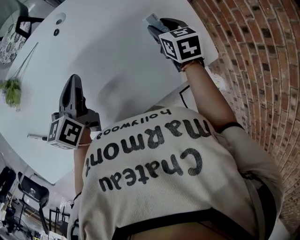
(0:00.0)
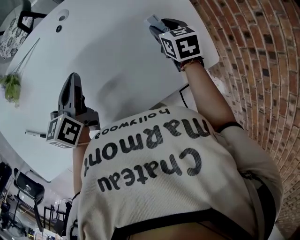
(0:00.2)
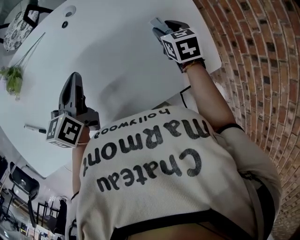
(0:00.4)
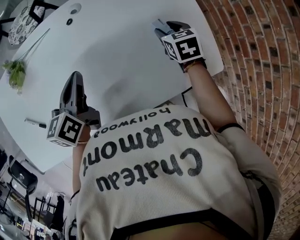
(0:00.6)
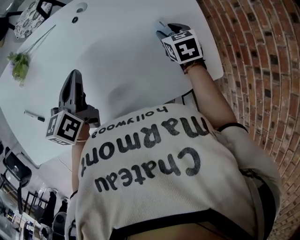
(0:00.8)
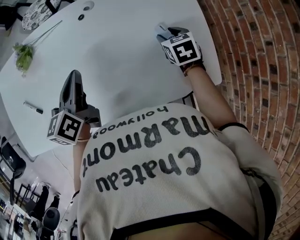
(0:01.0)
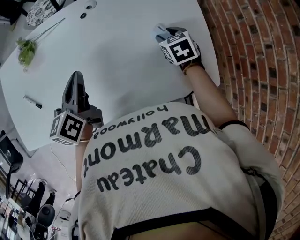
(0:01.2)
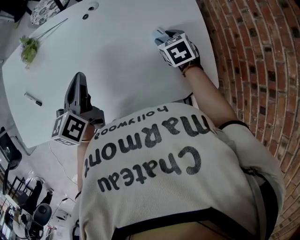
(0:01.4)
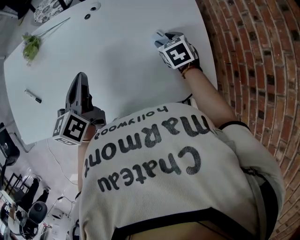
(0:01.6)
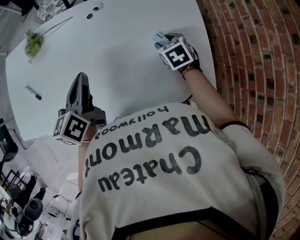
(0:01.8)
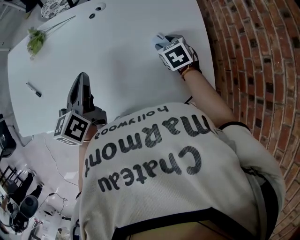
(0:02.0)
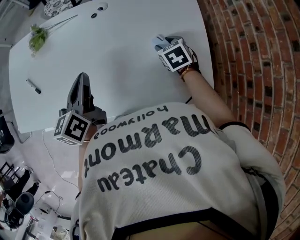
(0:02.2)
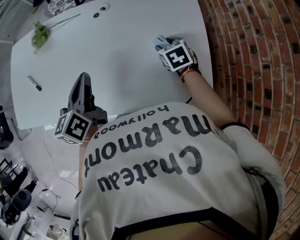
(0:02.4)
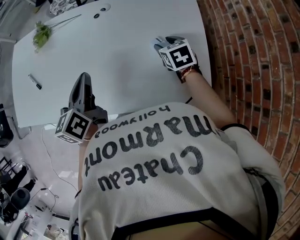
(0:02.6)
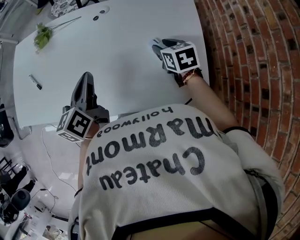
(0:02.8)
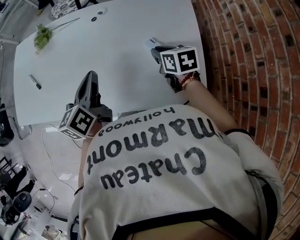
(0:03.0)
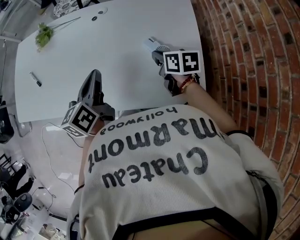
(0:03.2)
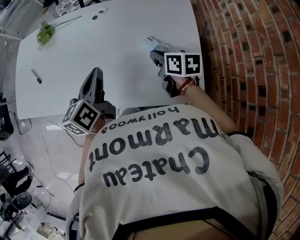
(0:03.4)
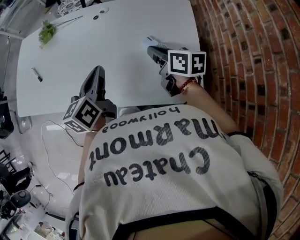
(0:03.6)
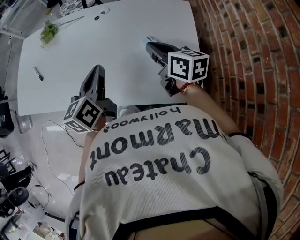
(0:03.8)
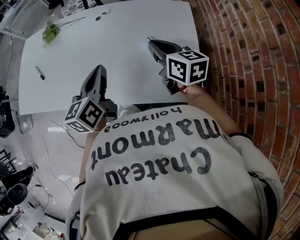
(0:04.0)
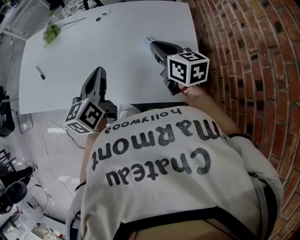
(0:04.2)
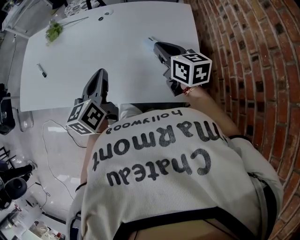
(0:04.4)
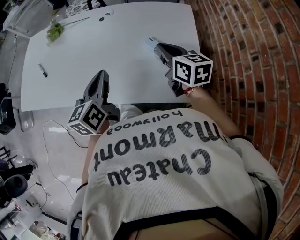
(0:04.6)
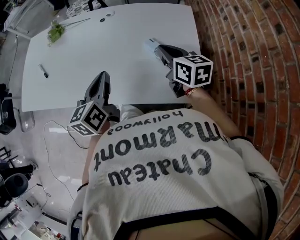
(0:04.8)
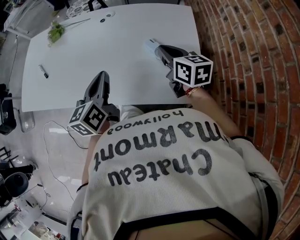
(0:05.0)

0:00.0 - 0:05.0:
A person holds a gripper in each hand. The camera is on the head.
0:00.0 - 0:01.6: The right gripper rotates roughly 30 degrees. Meanwhile the left gripper is displaced backward and upward by about 10 cm, and swivels approximately 20 degrees.
0:01.6 - 0:03.4: The right gripper is displaced upward and backward by some 10 cm, changes its angle by approximately 40 degrees, and closes its fingers; the left gripper moves to the right and backward, approximately 10 cm.
0:03.4 - 0:05.0: The right gripper is displaced upward by approximately 5 cm.

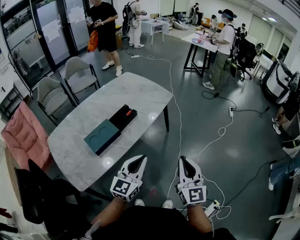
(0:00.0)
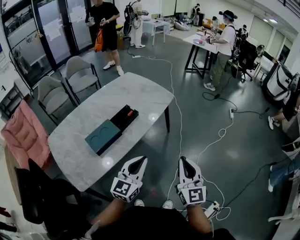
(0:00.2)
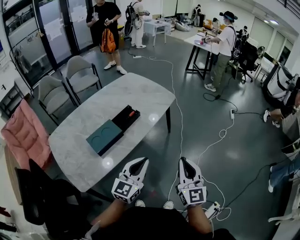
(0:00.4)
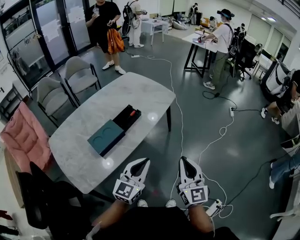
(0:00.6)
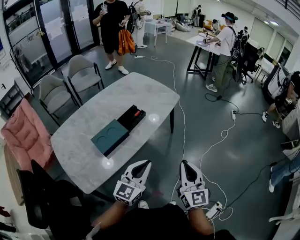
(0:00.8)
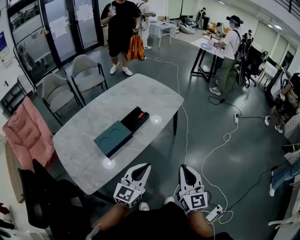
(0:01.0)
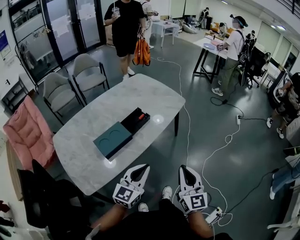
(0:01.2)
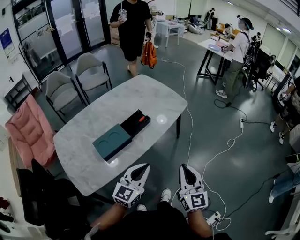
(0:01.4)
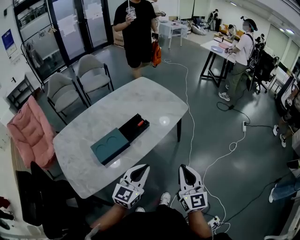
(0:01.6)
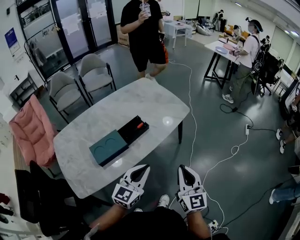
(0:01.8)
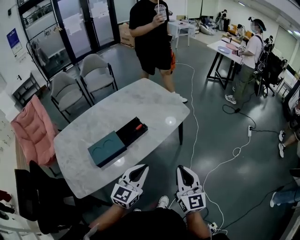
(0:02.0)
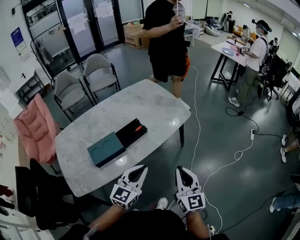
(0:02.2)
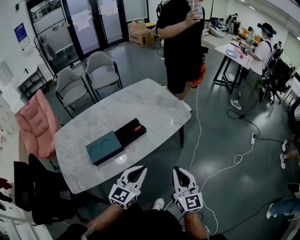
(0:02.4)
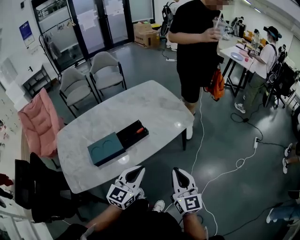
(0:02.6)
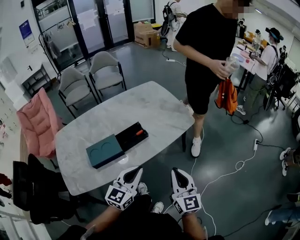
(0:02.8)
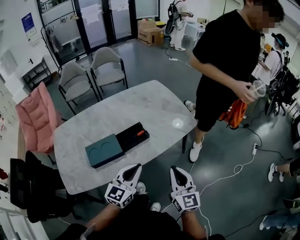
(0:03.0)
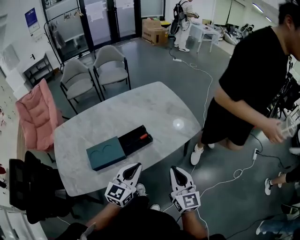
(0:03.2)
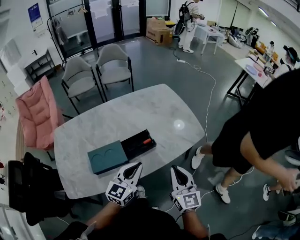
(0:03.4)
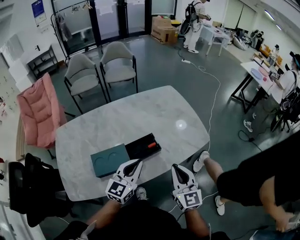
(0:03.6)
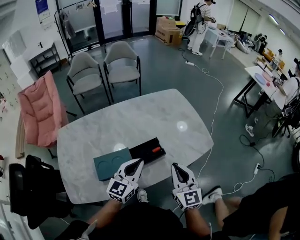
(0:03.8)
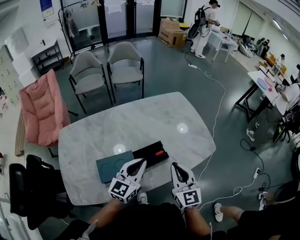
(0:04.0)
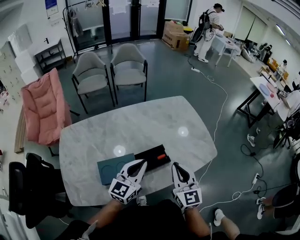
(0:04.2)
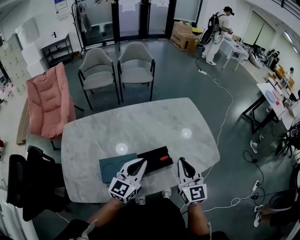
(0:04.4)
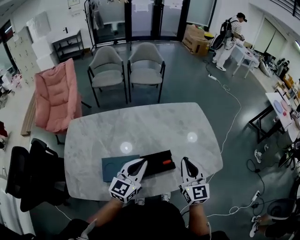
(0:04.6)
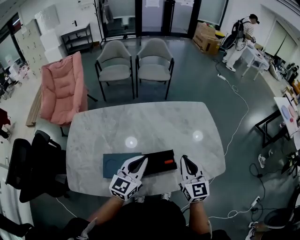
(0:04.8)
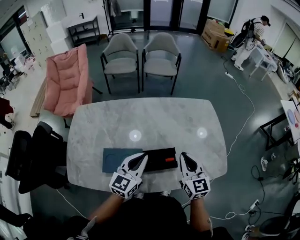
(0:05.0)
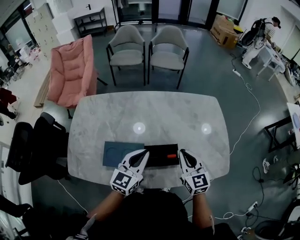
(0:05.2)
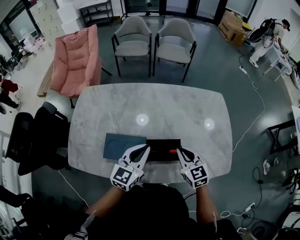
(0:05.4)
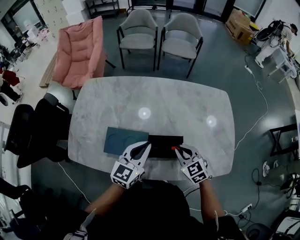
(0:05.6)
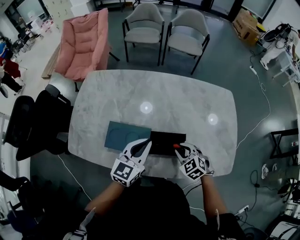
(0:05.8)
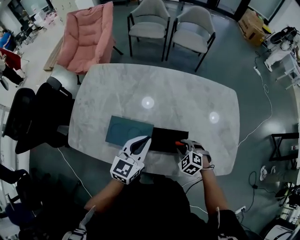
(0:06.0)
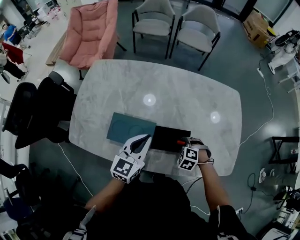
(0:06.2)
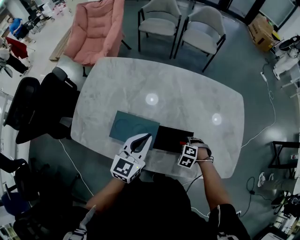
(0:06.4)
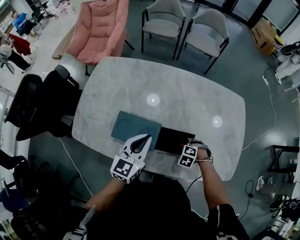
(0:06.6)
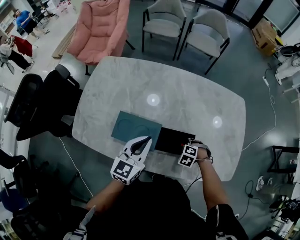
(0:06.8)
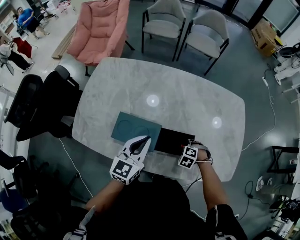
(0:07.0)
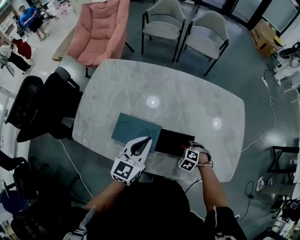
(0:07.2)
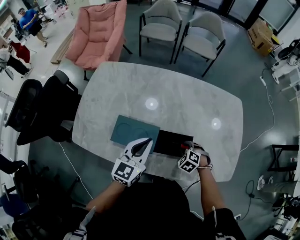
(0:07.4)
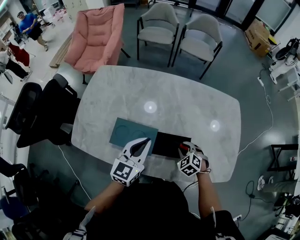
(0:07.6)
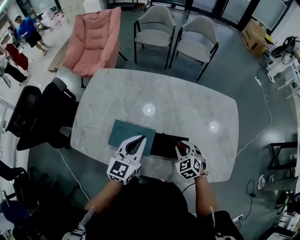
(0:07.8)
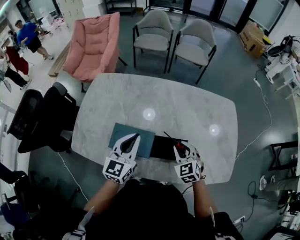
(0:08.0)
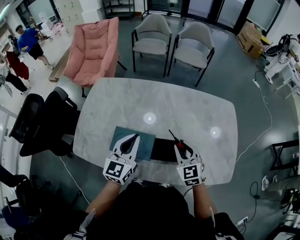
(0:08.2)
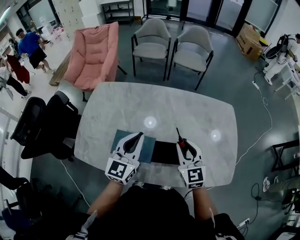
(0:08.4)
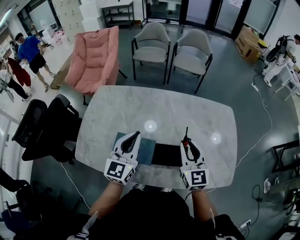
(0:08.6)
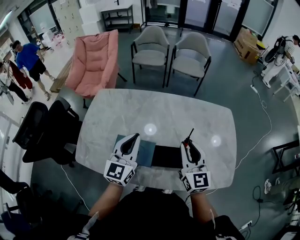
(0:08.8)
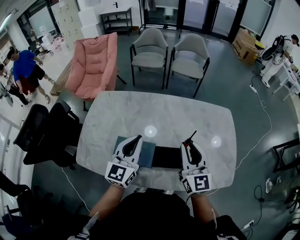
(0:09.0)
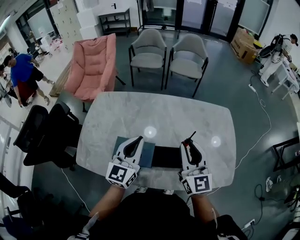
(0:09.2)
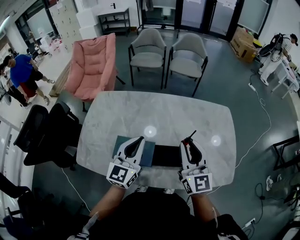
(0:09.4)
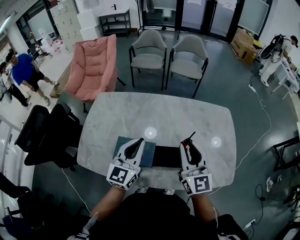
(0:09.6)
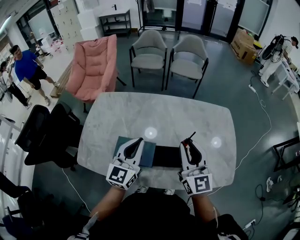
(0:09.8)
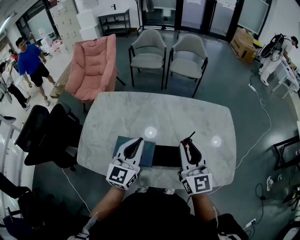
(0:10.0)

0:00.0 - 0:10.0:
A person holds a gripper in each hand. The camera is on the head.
0:00.0 - 0:01.4: The right gripper heads to the left and forward, covering some 10 cm. Meanwhile the left gripper ends up some 5 cm from where it was.
0:01.4 - 0:02.8: The right gripper goes roughly 15 cm forward, while the left gripper is displaced forward and to the right by about 15 cm.
0:02.8 - 0:04.2: The two grippers go some 25 cm forward and to the left.
0:04.2 - 0:05.8: The left gripper changes place by approximately 10 cm, and changes its angle by some 30 degrees. Meanwhile the right gripper heads downward, covering approximately 20 cm, and tips its fingers downward by roughly 50 degrees.
0:05.8 - 0:07.2: The left gripper ends up roughly 5 cm from where it was. The right gripper heads downward, covering approximately 10 cm, and swivels about 30 degrees.
0:07.2 - 0:08.6: The right gripper travels upward by roughly 30 cm, and tilts its fingers some 70 degrees upward. Meanwhile the left gripper is displaced upward by some 10 cm.
0:08.6 - 0:10.0: The right gripper goes about 10 cm upward.

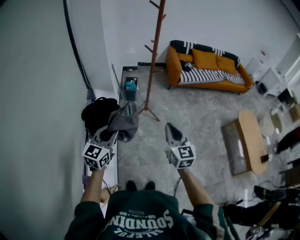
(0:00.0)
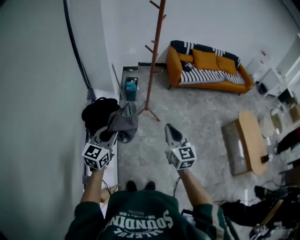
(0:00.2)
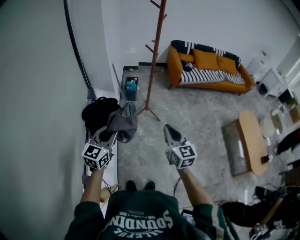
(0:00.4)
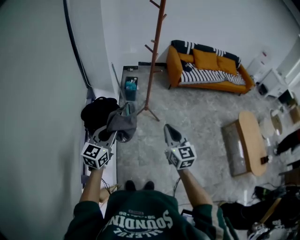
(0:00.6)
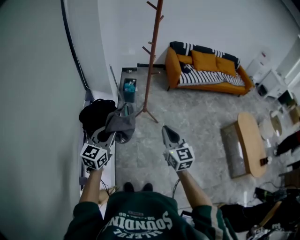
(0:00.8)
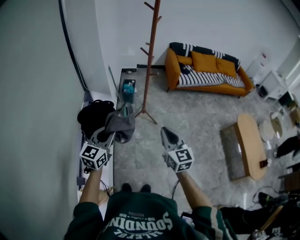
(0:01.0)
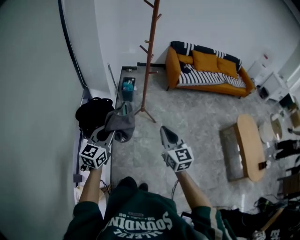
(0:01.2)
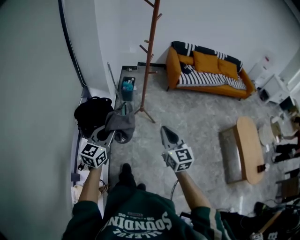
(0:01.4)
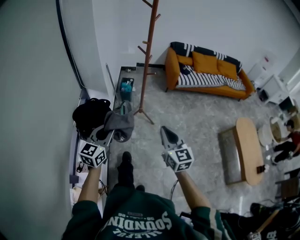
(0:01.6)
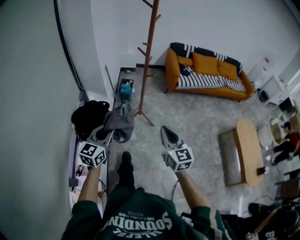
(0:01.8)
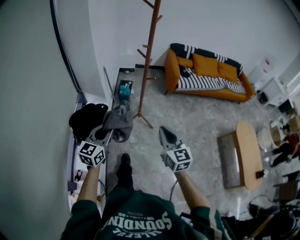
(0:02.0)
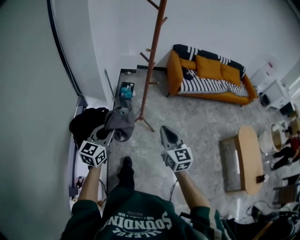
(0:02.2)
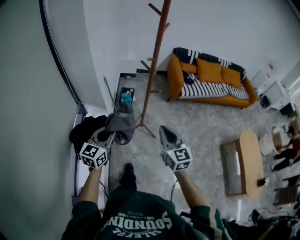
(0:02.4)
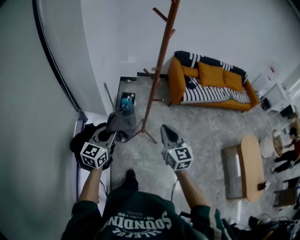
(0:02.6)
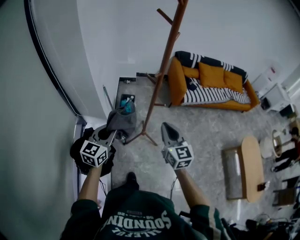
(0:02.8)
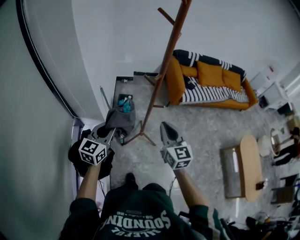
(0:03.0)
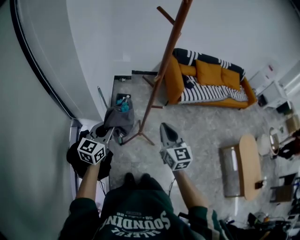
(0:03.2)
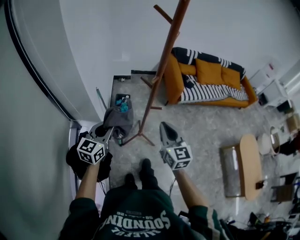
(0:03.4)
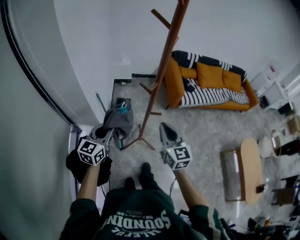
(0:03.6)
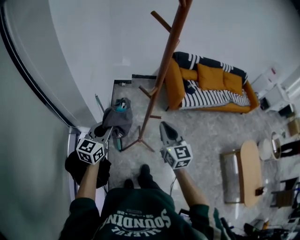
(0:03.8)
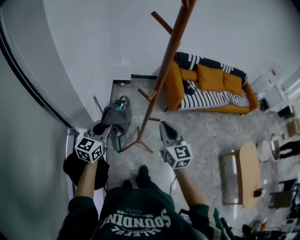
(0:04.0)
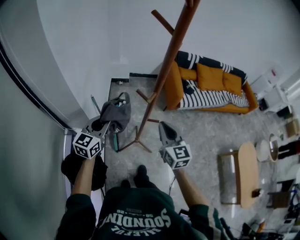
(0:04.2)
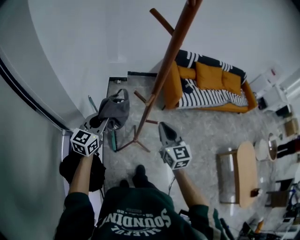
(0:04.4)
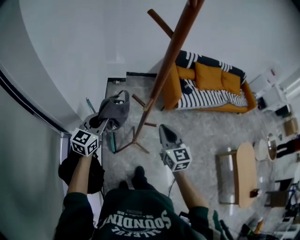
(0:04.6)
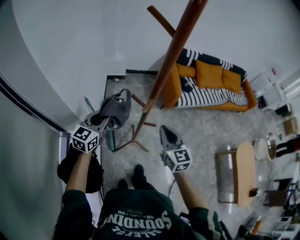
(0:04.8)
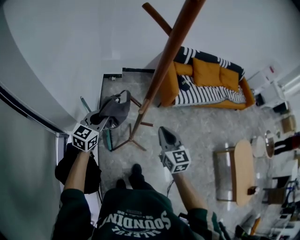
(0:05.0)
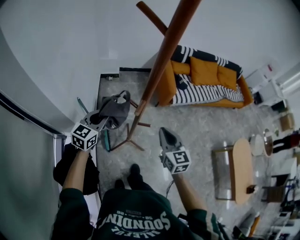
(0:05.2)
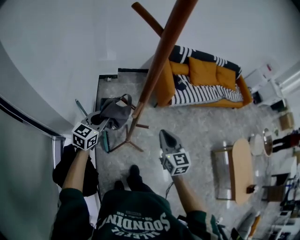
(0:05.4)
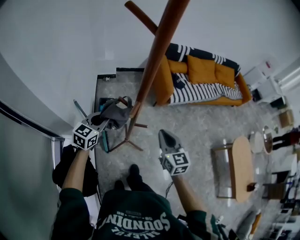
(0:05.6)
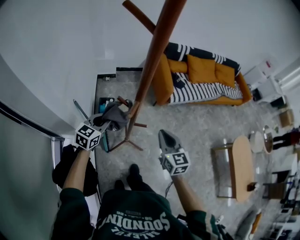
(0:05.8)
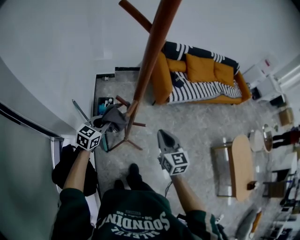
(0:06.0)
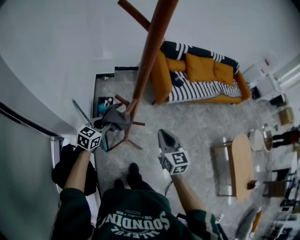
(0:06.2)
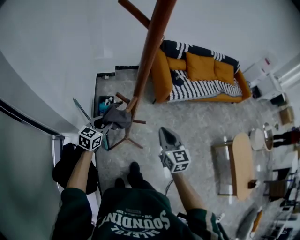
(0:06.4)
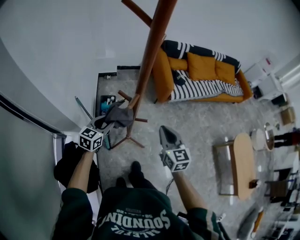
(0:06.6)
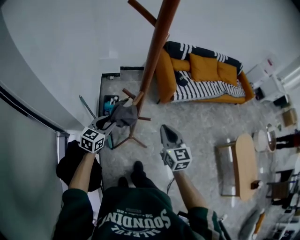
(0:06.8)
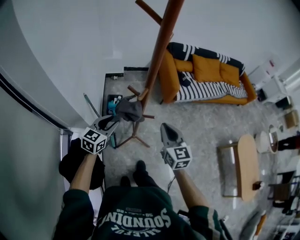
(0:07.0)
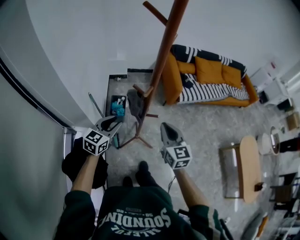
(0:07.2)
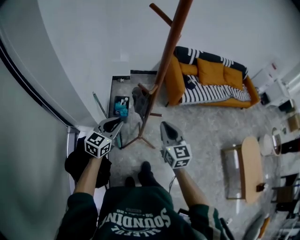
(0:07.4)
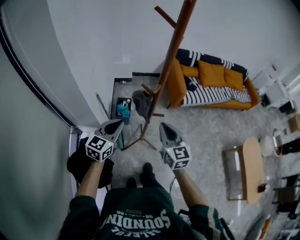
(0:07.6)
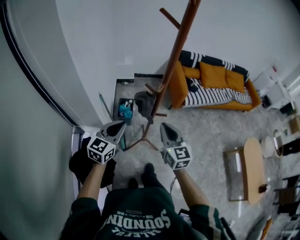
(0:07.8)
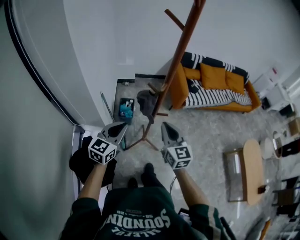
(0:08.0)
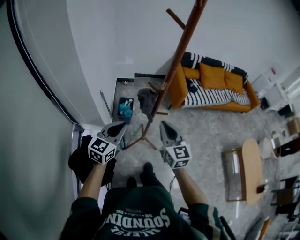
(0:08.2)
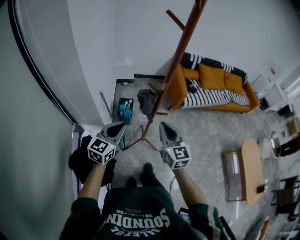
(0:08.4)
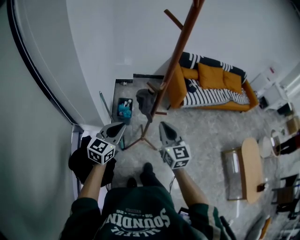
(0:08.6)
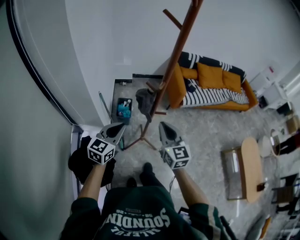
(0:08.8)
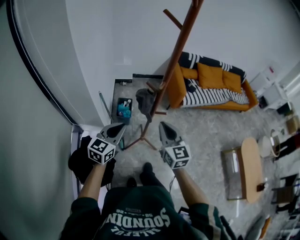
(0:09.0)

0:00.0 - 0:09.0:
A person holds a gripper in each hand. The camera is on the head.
0:00.0 - 0:01.6: The grippers both shift to the right by some 5 cm.
0:01.6 - 0:03.0: Both grippers travel together forward, approximately 35 cm.
0:03.0 - 0:04.4: Both grippers move forward, approximately 15 cm.
0:04.4 - 0:06.0: The right gripper is displaced to the right and downward by approximately 10 cm, while the left gripper heads downward, forward and to the right, covering about 15 cm, and swivels approximately 20 degrees.
0:06.0 - 0:07.6: The left gripper shifts approximately 20 cm backward and upward, and opens, then closes once more; the right gripper shifts about 10 cm backward and to the left.
0:07.6 - 0:09.0: The grippers stay close to where they were, moving slightly.
